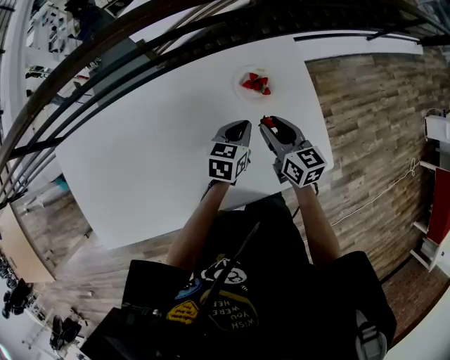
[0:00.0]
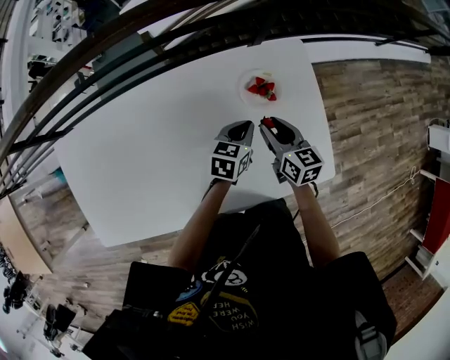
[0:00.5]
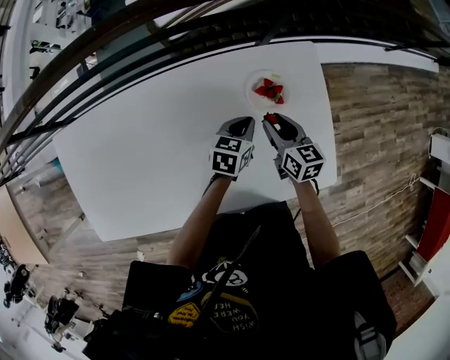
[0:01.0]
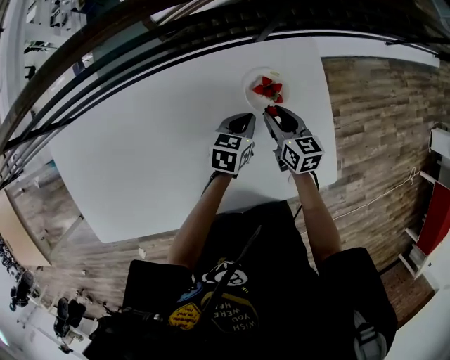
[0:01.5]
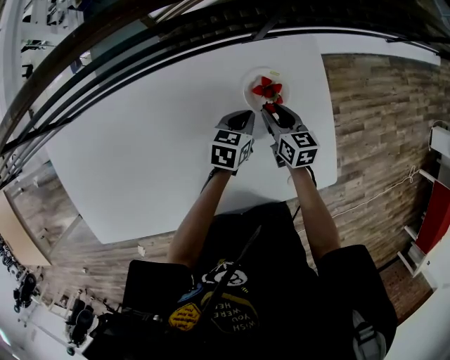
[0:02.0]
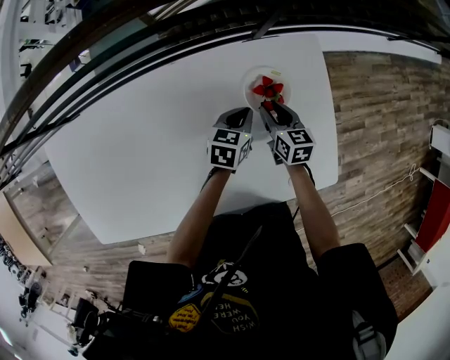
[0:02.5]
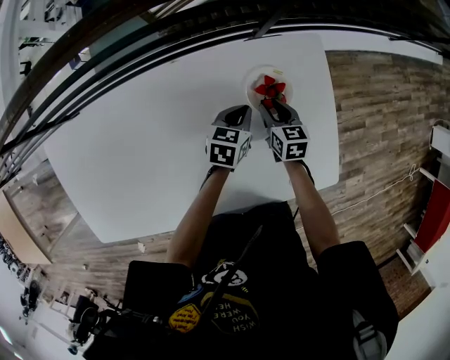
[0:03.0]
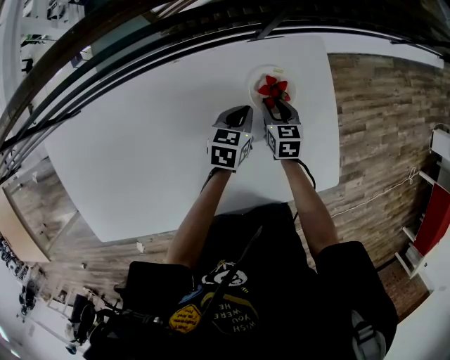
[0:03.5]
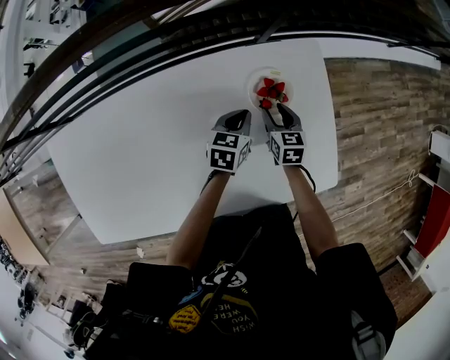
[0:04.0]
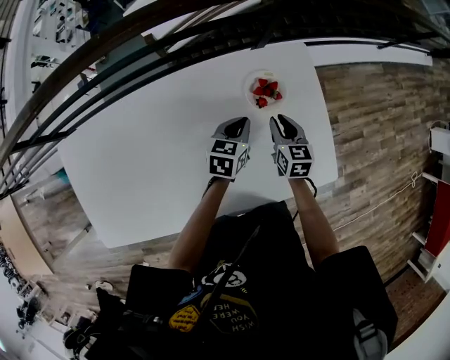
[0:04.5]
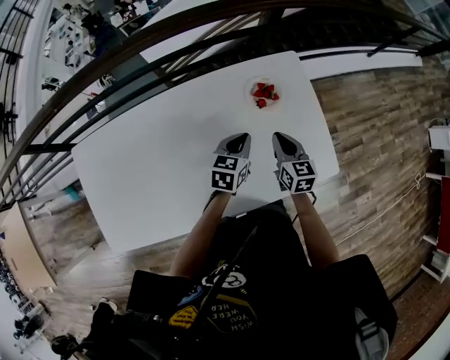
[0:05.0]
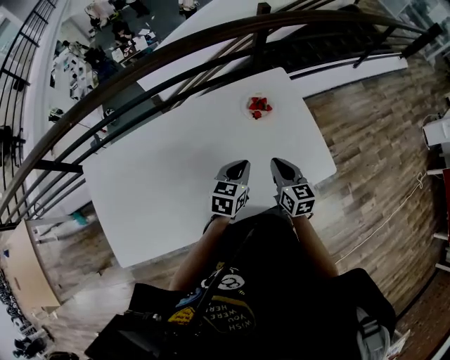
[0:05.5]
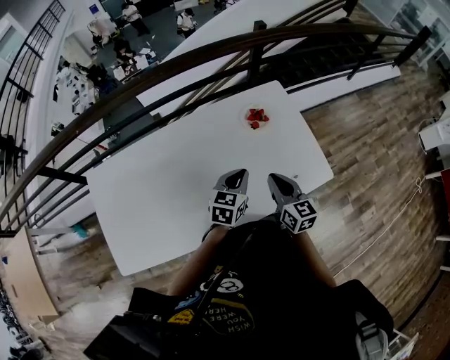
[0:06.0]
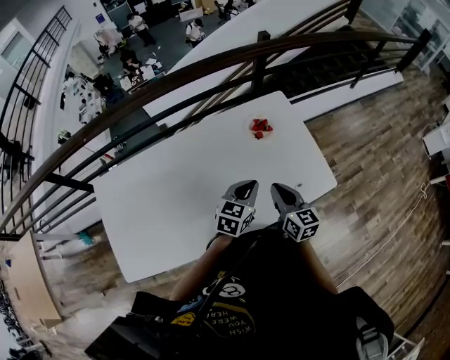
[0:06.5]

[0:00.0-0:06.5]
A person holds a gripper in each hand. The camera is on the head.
0:00.0 to 0:02.0: The right gripper heads downward and forward, covering some 15 cm. The left gripper travels forward and downward by some 10 cm.
0:02.0 to 0:04.5: The right gripper shifts by some 5 cm. Meanwhile the left gripper heads upward, covering about 5 cm.
0:04.5 to 0:06.5: Both grippers travel together backward and upward, approximately 30 cm. The right gripper swivels about 20 degrees, while the left gripper turns by roughly 20 degrees.

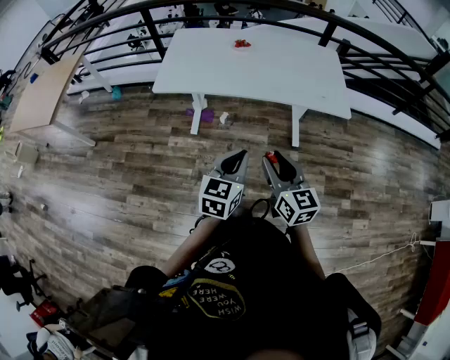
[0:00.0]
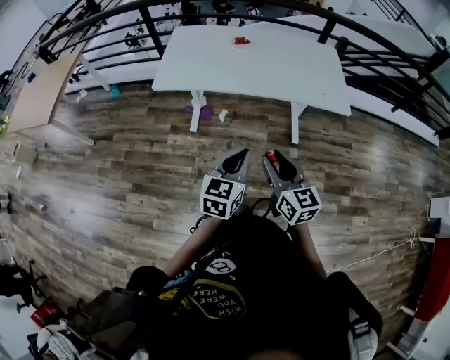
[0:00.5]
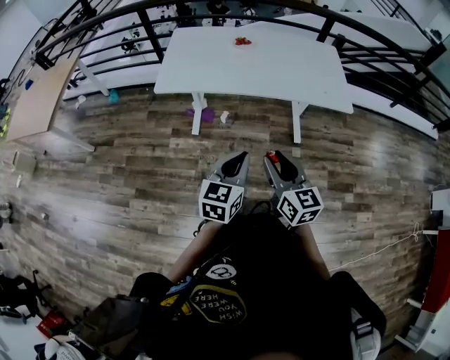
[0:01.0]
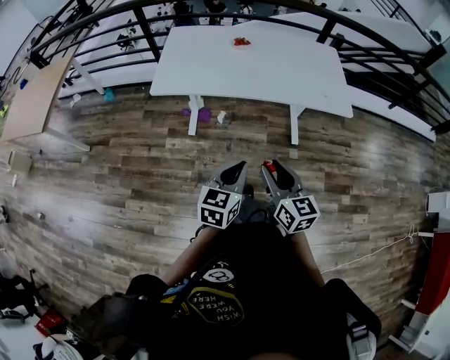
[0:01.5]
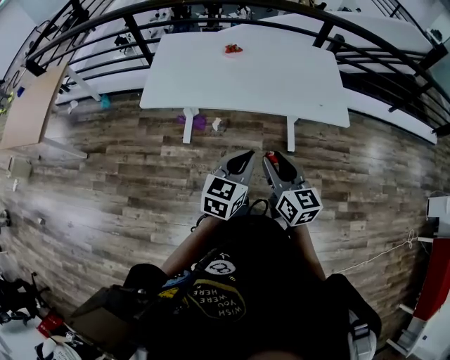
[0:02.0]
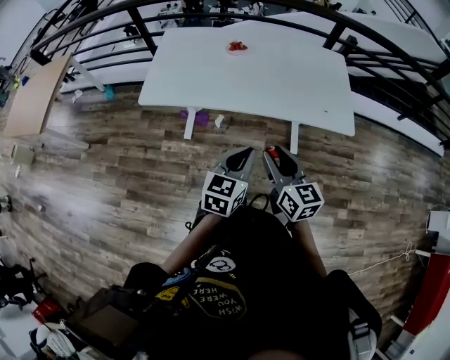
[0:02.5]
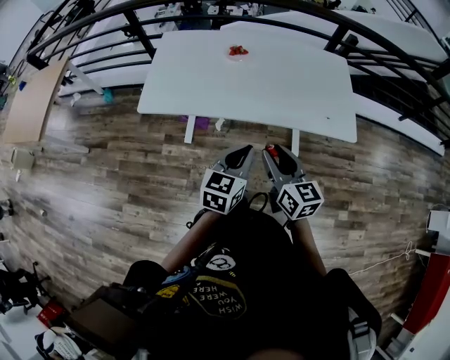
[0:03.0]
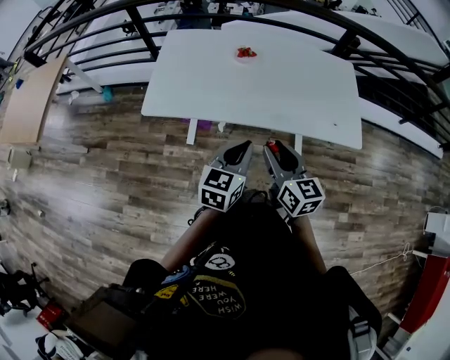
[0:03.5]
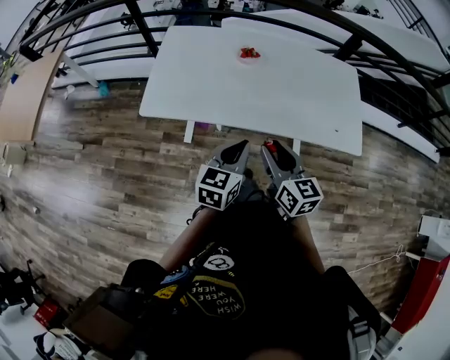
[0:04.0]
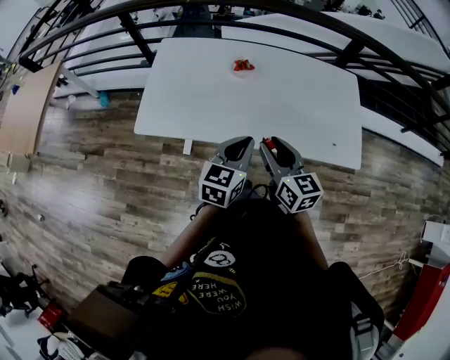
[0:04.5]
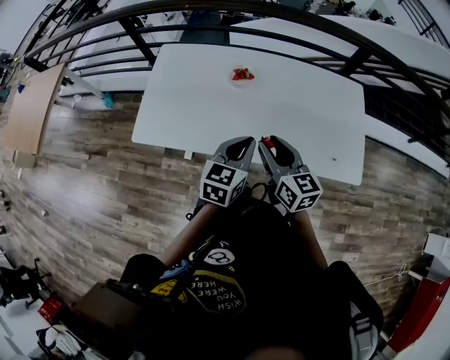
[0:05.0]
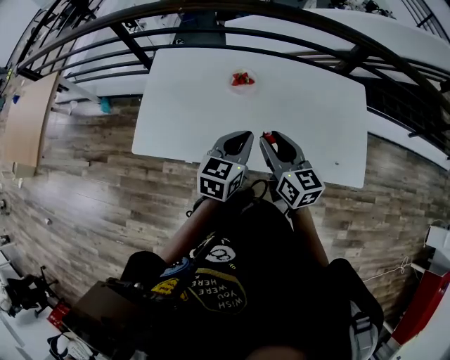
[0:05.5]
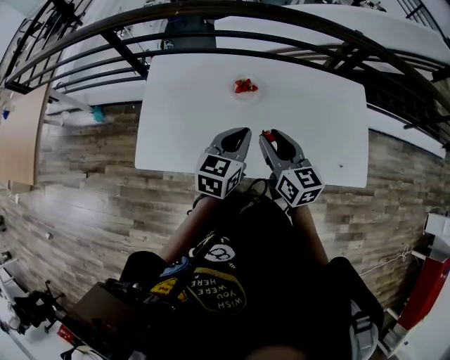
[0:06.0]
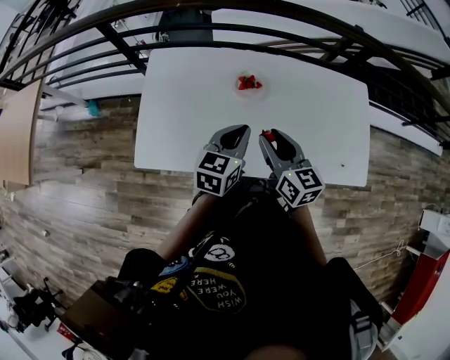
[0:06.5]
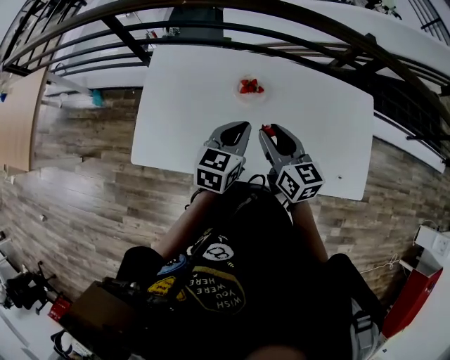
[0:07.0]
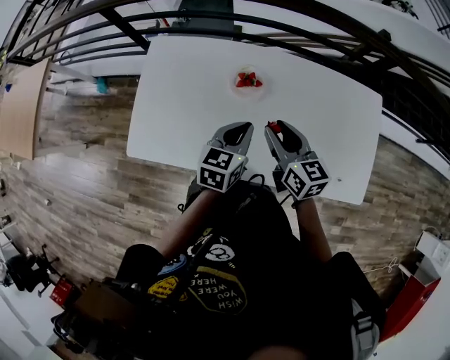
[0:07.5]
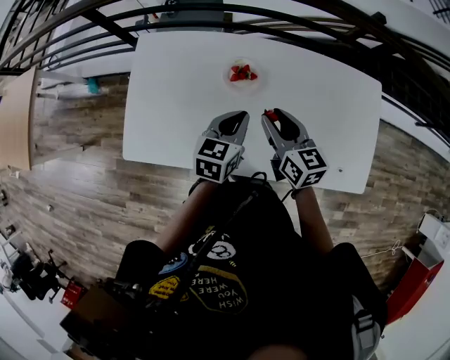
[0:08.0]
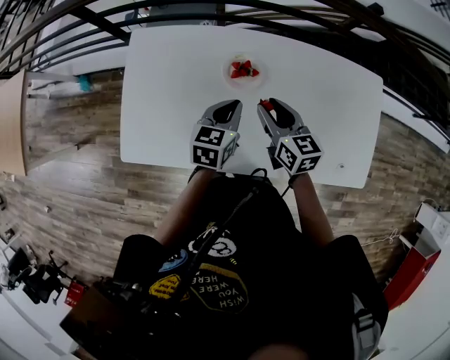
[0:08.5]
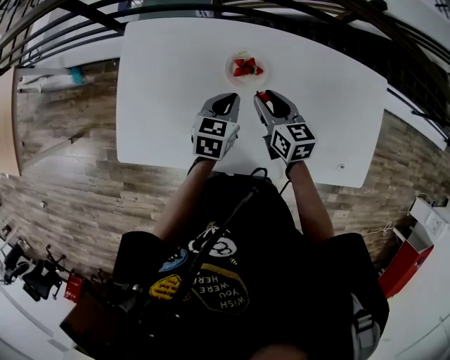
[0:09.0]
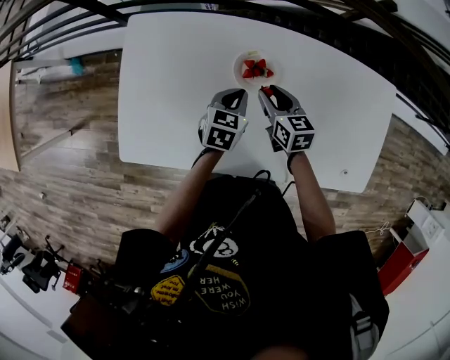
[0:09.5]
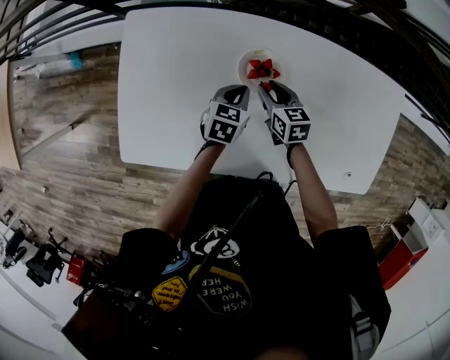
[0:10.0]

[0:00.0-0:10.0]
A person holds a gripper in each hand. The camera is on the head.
0:00.0 to 0:02.0: The two grippers go about 10 cm forward.
0:02.0 to 0:04.0: The two grippers go some 20 cm forward.
0:04.0 to 0:06.0: The two grippers go about 30 cm forward.
0:06.0 to 0:08.0: Both grippers move forward and downward, roughly 15 cm.
0:08.0 to 0:10.0: Both grippers move downward and forward, roughly 25 cm. The right gripper turns by some 20 degrees.

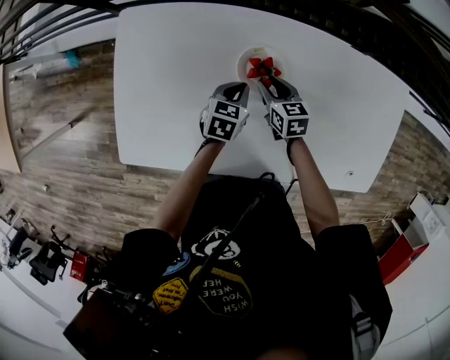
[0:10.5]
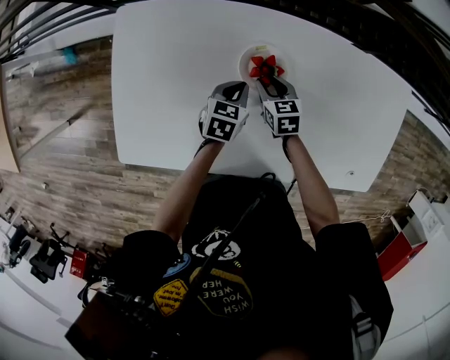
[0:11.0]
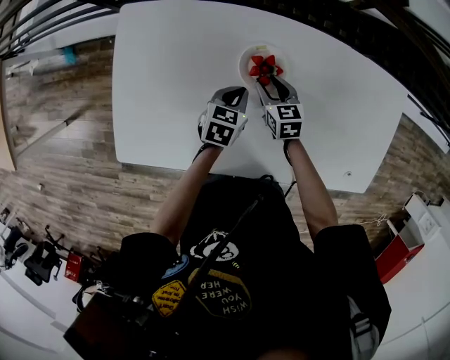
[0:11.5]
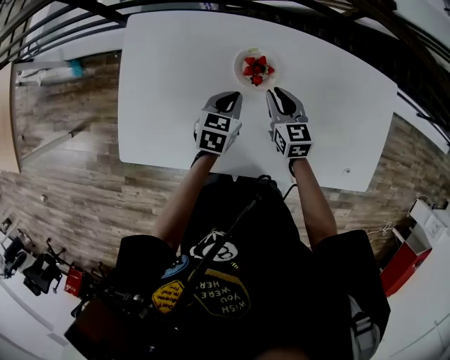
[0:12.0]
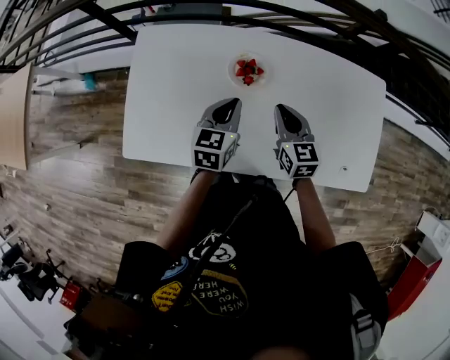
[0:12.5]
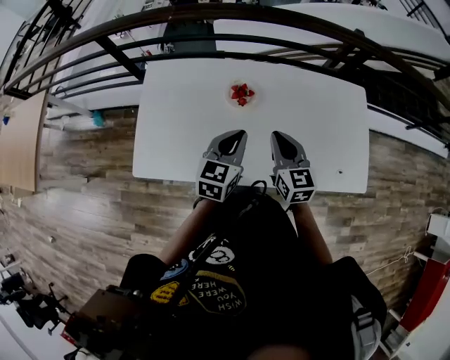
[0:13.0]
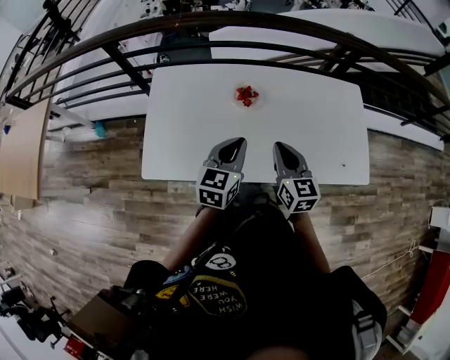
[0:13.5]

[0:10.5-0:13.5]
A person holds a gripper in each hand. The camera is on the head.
0:10.5 to 0:12.0: The grippers both shift upward by about 5 cm.
0:12.0 to 0:13.5: The left gripper goes roughly 30 cm upward and backward, and changes its angle by some 20 degrees, while the right gripper moves backward and upward, about 30 cm.

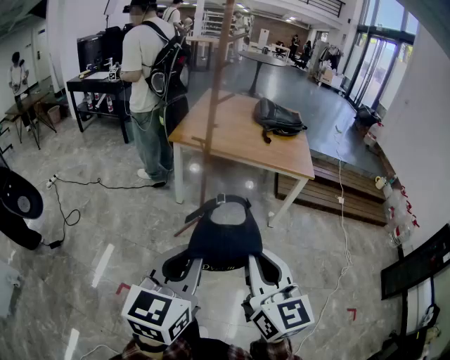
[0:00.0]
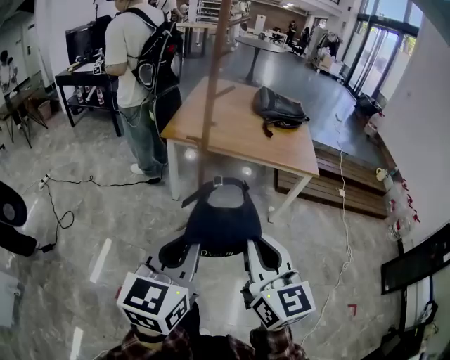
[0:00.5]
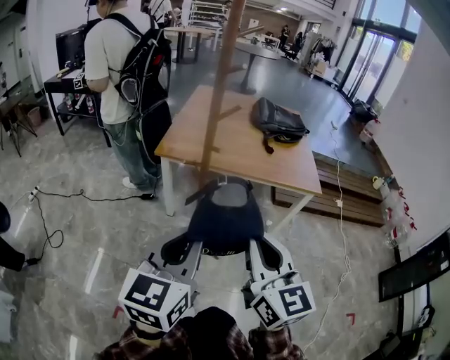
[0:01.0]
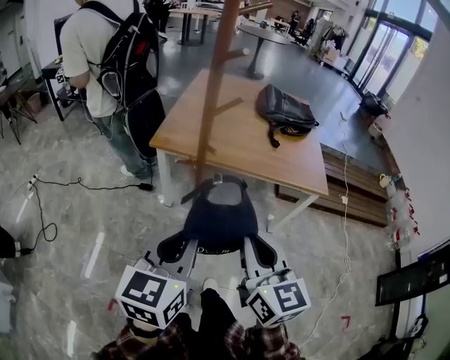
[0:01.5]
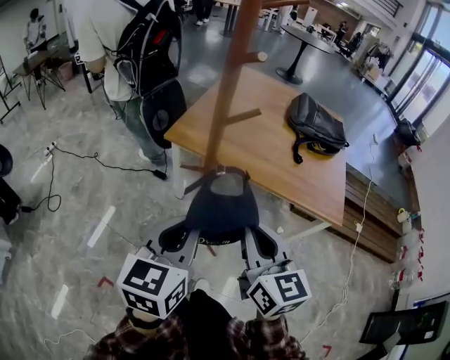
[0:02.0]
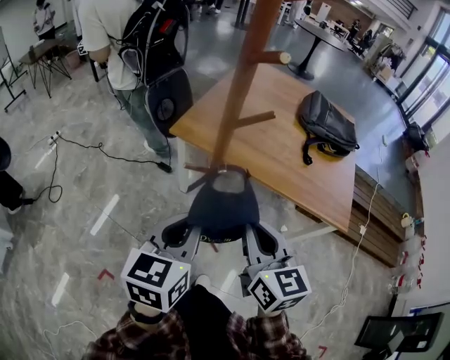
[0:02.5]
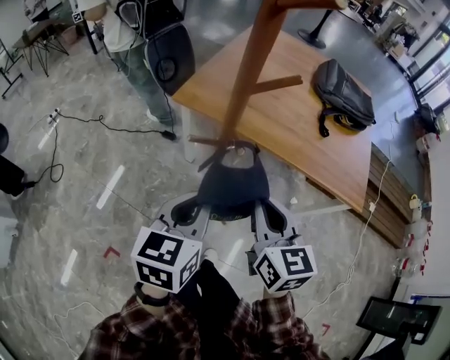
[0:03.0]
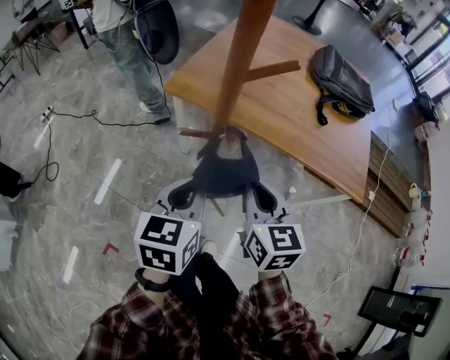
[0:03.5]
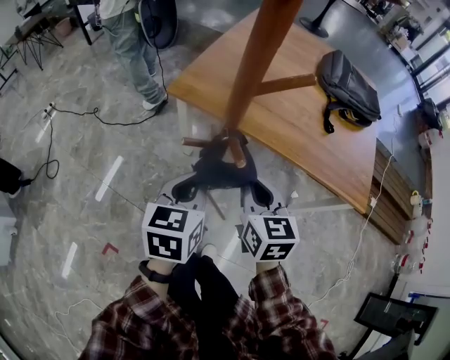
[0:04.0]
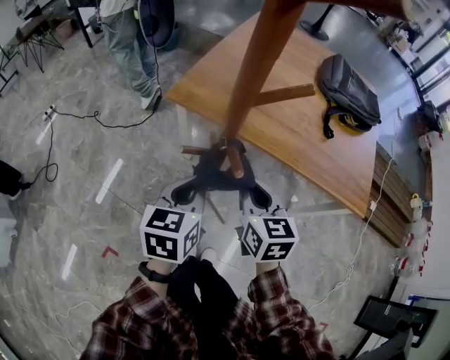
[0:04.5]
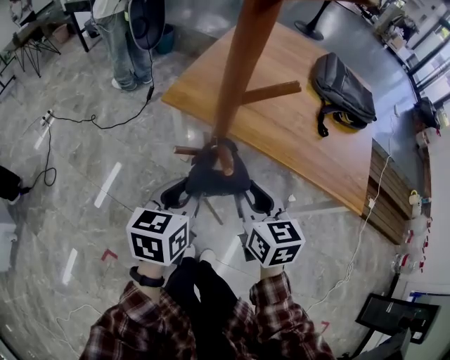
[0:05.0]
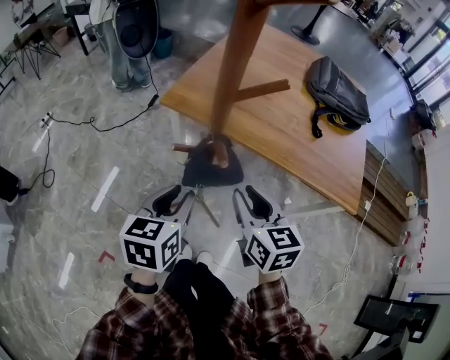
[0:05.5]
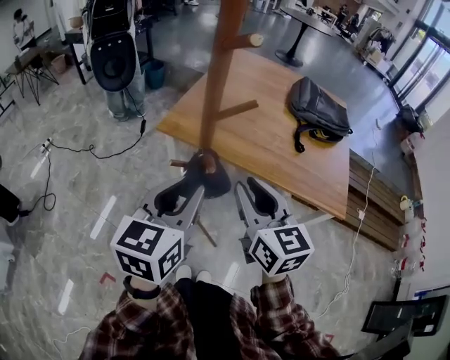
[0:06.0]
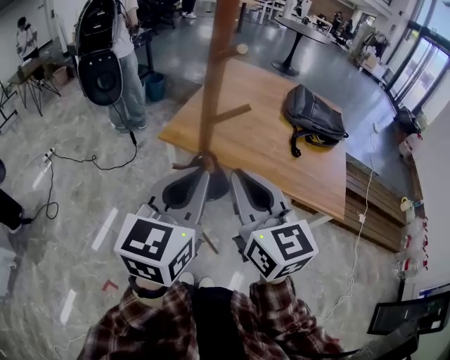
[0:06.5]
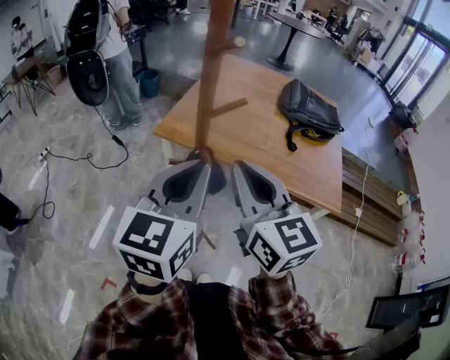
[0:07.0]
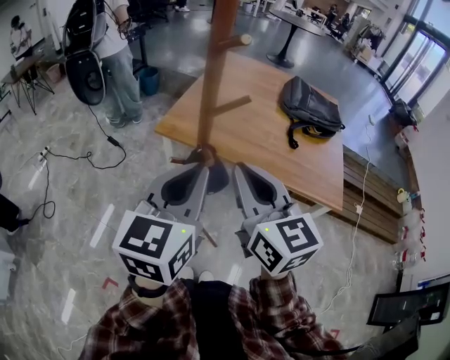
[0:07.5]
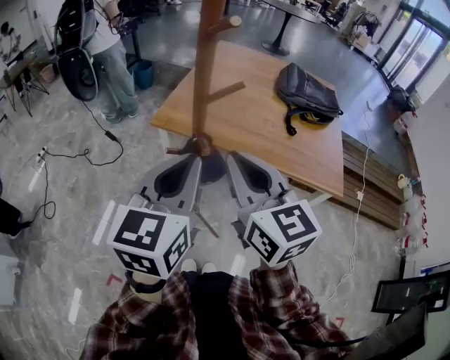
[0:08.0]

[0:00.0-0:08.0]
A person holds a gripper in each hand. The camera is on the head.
0:00.0 to 0:02.0: The pair of grippers is taken forward, some 40 cm.
0:02.0 to 0:04.0: Both grippers move downward and forward, some 20 cm.
0:04.0 to 0:06.0: Both grippers travel together upward, roughly 15 cm. The right gripper opens up. Meanwhile the left gripper opens up.
0:06.0 to 0:08.0: The grippers both shift upward by roughly 5 cm. The left gripper closes its fingers; the right gripper closes.
